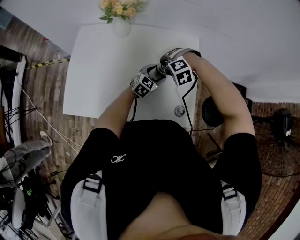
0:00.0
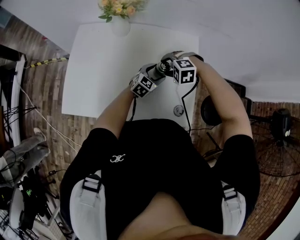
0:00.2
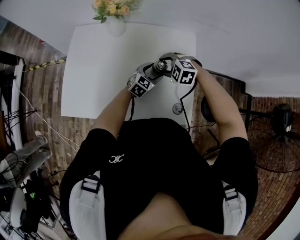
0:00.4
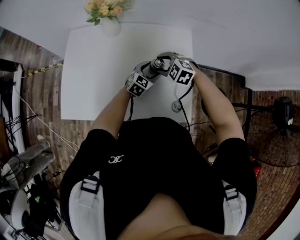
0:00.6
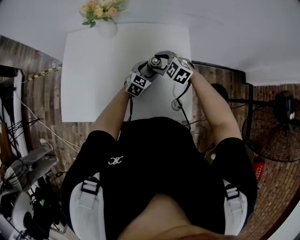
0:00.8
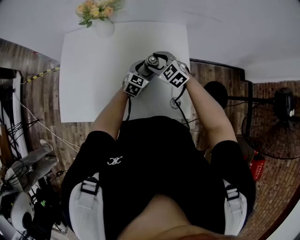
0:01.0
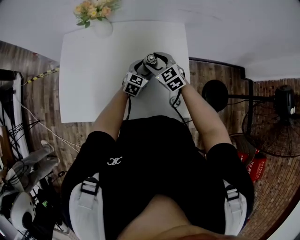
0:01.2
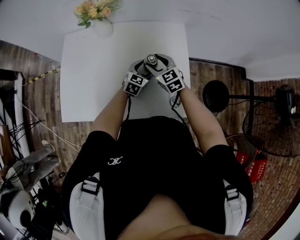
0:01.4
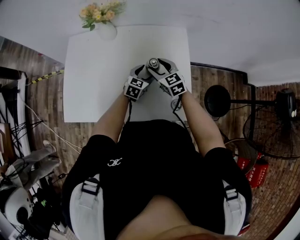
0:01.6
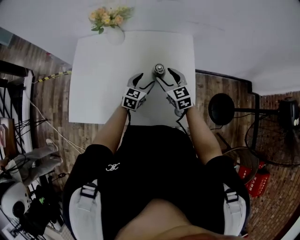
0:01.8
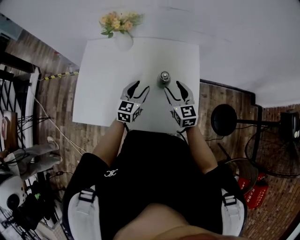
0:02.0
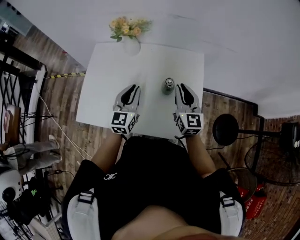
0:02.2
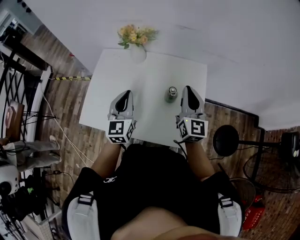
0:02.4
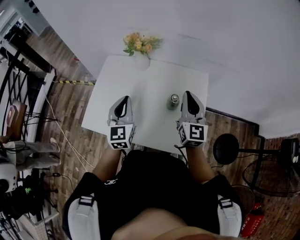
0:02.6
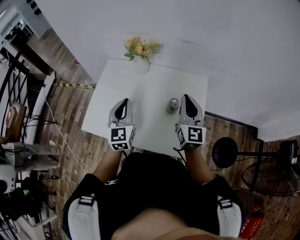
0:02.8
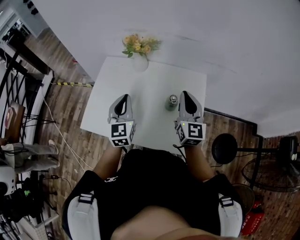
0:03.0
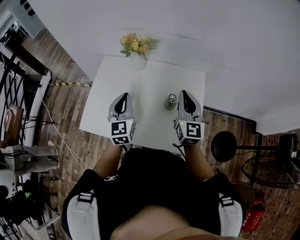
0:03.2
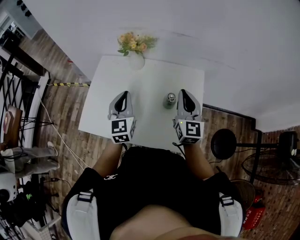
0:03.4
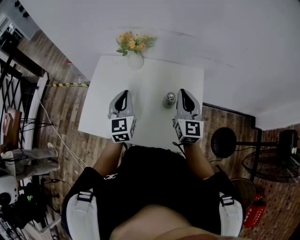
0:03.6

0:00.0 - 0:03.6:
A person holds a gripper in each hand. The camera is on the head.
0:00.0 - 0:01.8: The left gripper changes place by approximately 5 cm; the right gripper shifts by some 5 cm, and rolls clockwise, seen from behind, by roughly 80 degrees.
0:01.8 - 0:03.6: The right gripper is displaced upward by approximately 20 cm, swivels roughly 30 degrees, and closes its fingers. The left gripper travels upward and to the left by some 25 cm, changes its angle by about 40 degrees, and closes its fingers.

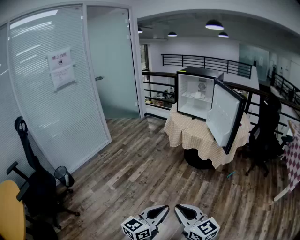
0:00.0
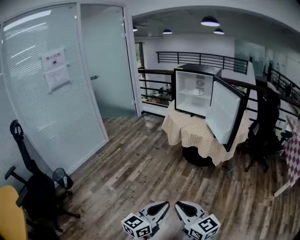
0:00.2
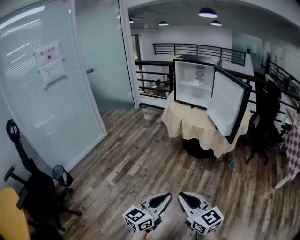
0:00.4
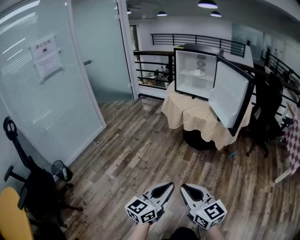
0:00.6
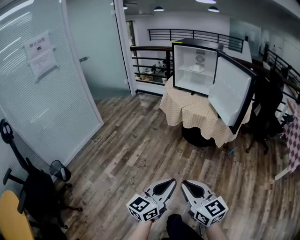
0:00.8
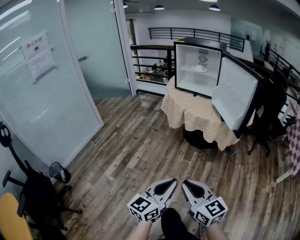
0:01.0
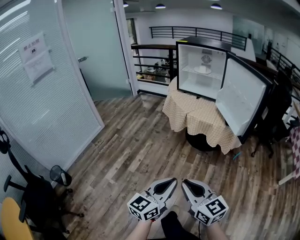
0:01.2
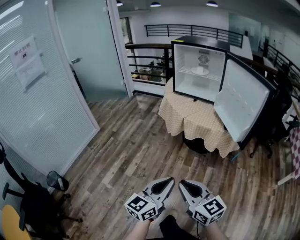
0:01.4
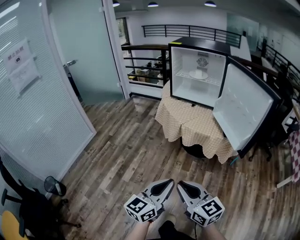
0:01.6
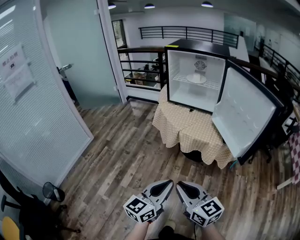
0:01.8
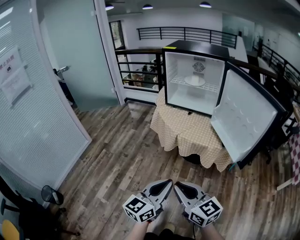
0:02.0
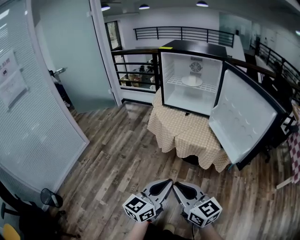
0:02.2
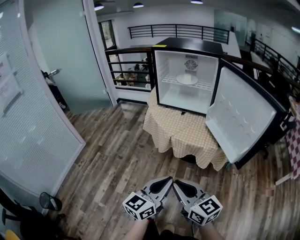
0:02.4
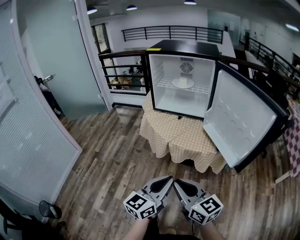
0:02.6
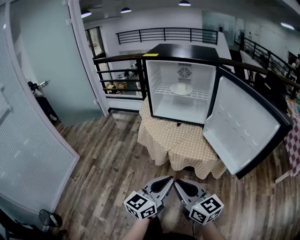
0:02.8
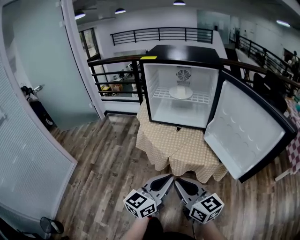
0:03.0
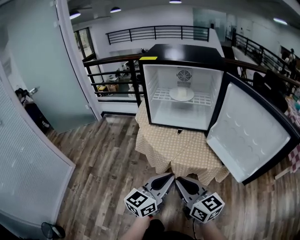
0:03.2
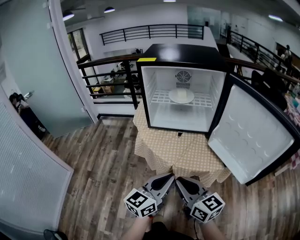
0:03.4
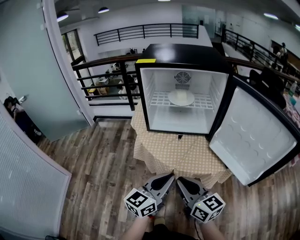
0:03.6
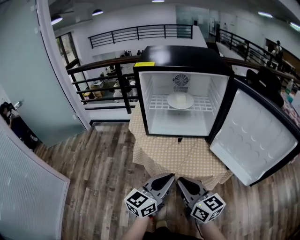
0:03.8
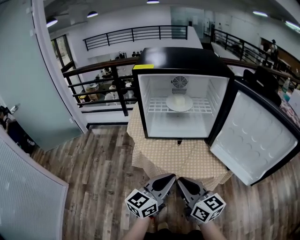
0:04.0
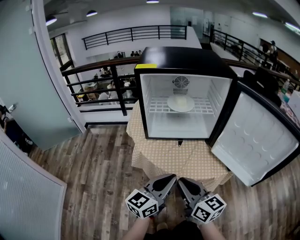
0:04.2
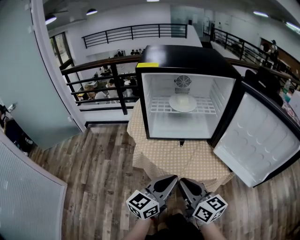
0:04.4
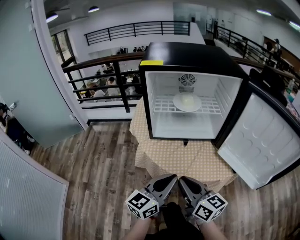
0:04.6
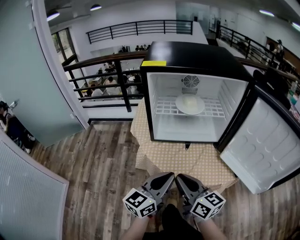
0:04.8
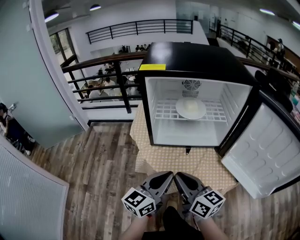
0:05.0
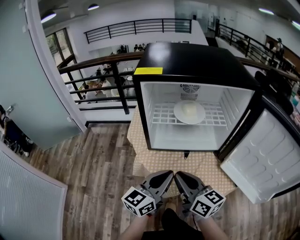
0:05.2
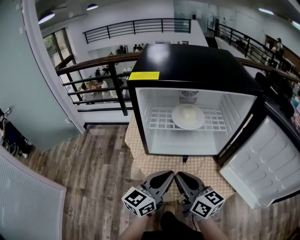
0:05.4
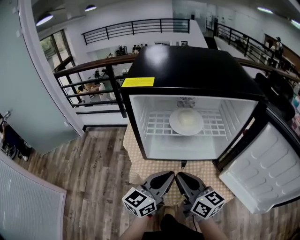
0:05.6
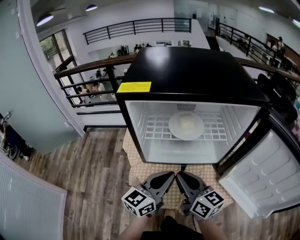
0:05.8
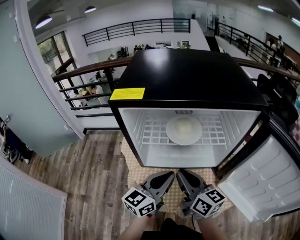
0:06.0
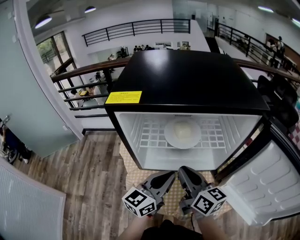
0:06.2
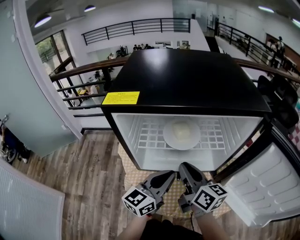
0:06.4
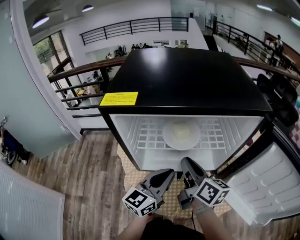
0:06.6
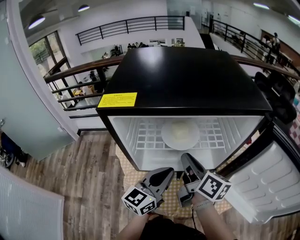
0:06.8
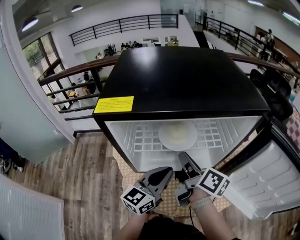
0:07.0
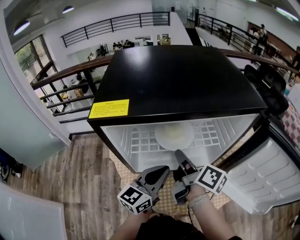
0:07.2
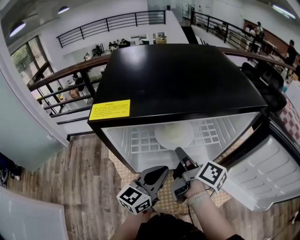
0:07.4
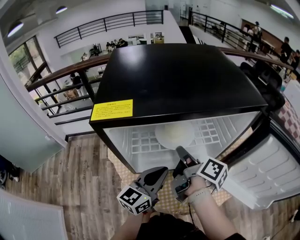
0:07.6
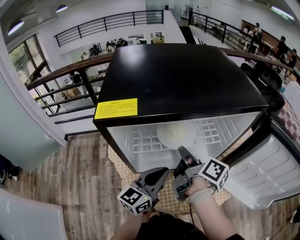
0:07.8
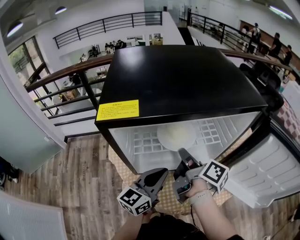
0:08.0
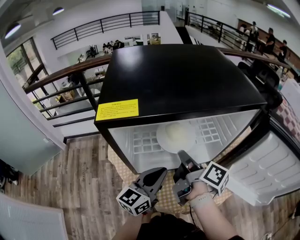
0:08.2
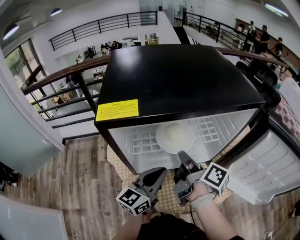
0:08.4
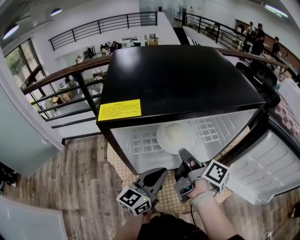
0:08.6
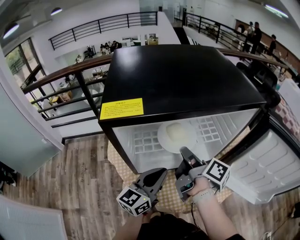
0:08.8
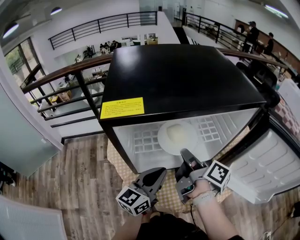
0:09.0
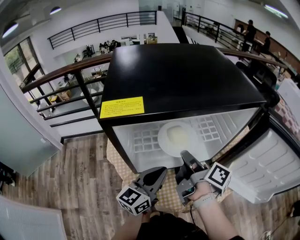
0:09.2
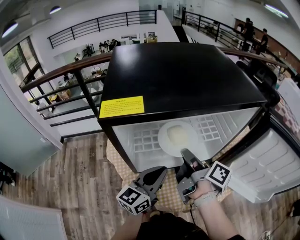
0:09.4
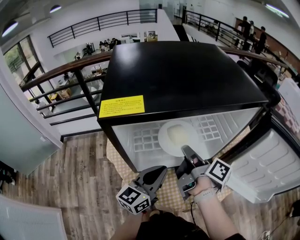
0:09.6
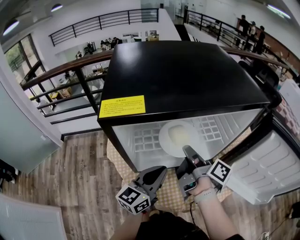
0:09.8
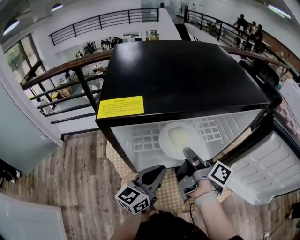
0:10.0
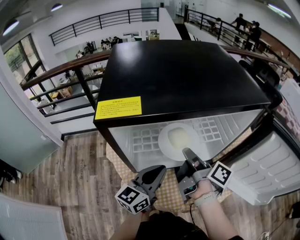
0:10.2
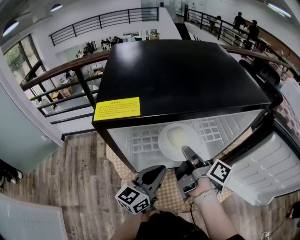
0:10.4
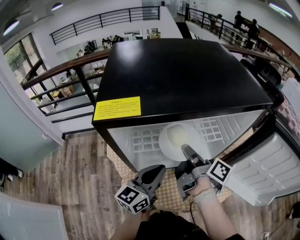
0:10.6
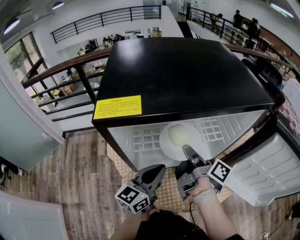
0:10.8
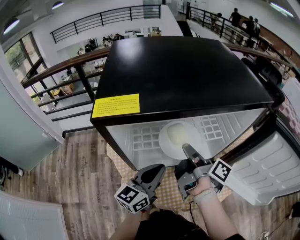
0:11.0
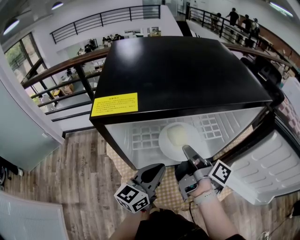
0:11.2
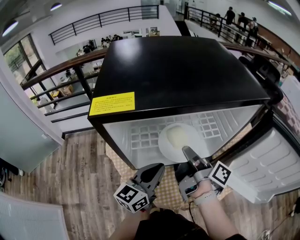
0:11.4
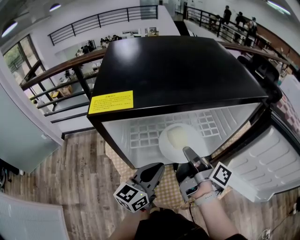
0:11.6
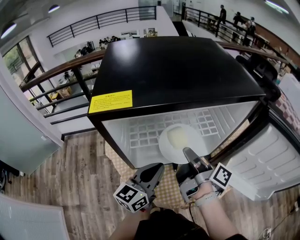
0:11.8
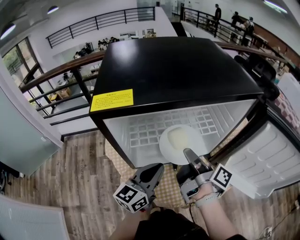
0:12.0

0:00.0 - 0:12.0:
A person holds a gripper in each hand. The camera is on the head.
0:00.0 - 0:01.6: The two grippers go about 35 cm forward.
0:01.6 - 0:03.0: Both grippers move forward, some 25 cm.
0:03.0 - 0:04.4: Both grippers move forward and to the left, approximately 15 cm.
0:04.4 - 0:06.0: Both grippers move forward, about 20 cm.
0:06.0 - 0:07.6: The right gripper goes about 10 cm forward, and rolls clockwise, seen from behind, by some 50 degrees.
0:07.6 - 0:12.0: There are only small adjustments of the grippers.

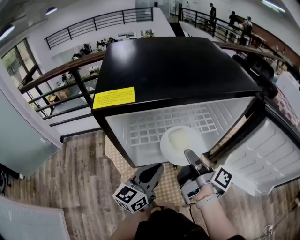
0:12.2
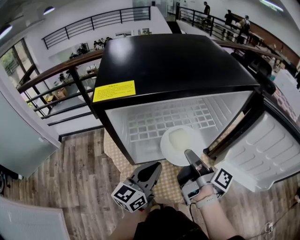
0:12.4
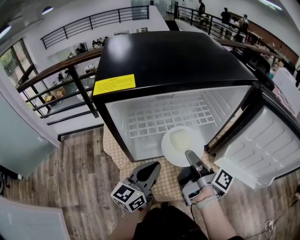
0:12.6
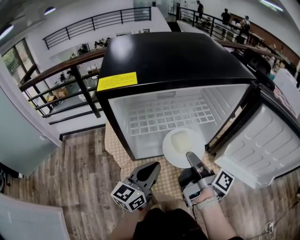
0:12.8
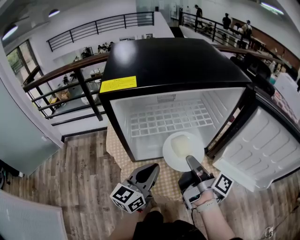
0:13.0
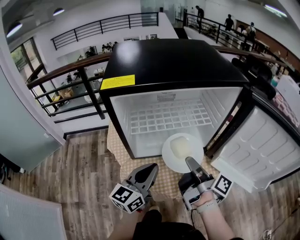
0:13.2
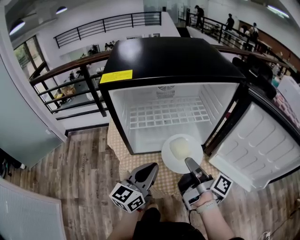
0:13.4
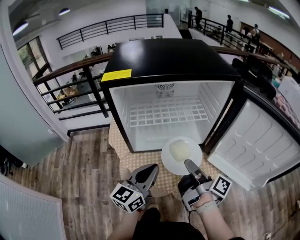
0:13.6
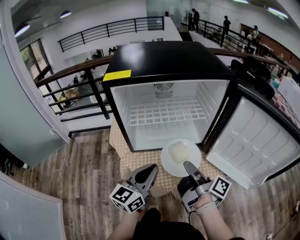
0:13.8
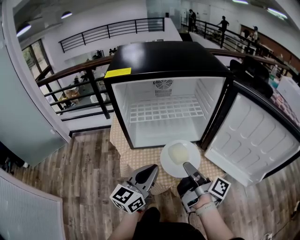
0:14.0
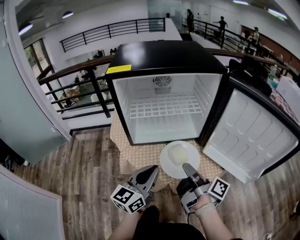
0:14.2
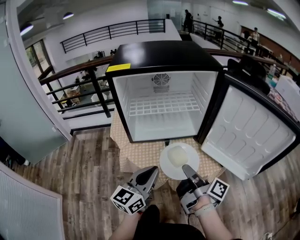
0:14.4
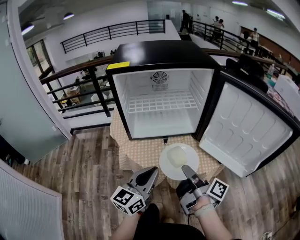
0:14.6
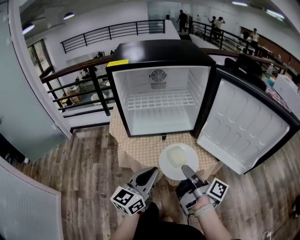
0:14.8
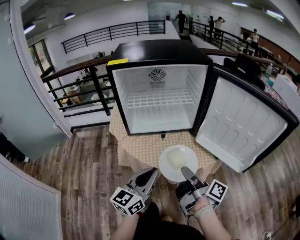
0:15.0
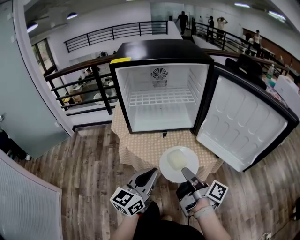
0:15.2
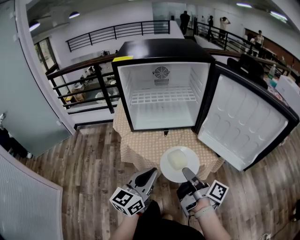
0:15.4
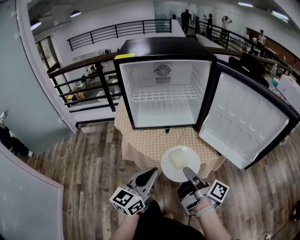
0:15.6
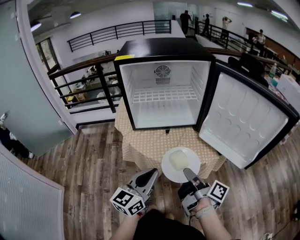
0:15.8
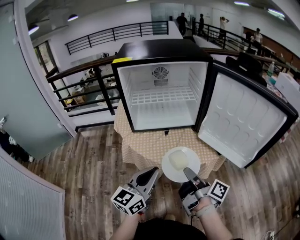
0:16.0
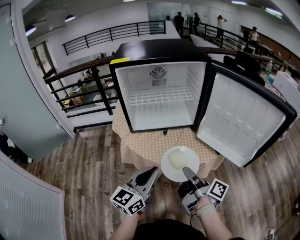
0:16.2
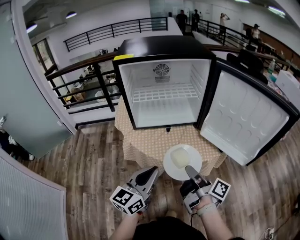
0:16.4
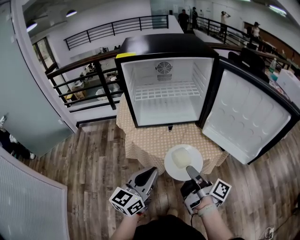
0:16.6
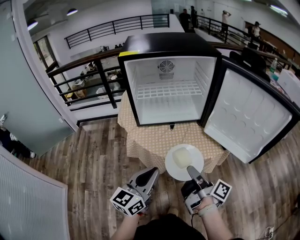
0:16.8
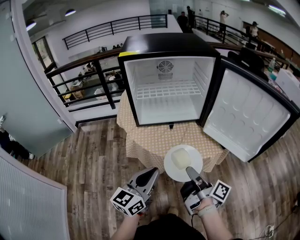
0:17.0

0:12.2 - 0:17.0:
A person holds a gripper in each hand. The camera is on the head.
0:12.2 - 0:13.8: The right gripper is displaced backward and to the right by some 15 cm. The left gripper moves backward, approximately 10 cm.
0:13.8 - 0:15.4: Both grippers travel together backward, some 15 cm.
0:15.4 - 0:17.0: There are only small adjustments of the grippers.

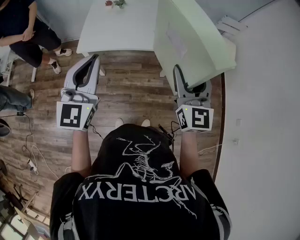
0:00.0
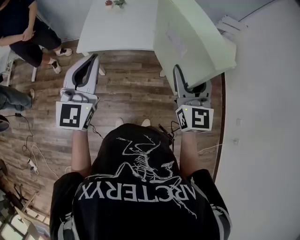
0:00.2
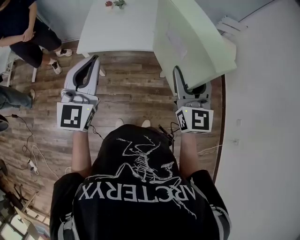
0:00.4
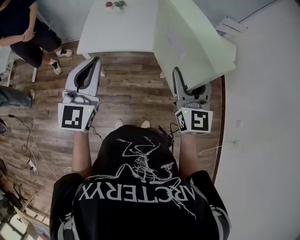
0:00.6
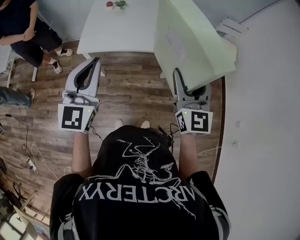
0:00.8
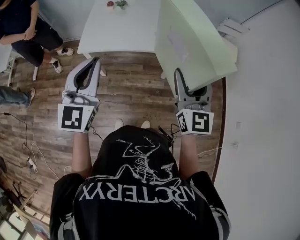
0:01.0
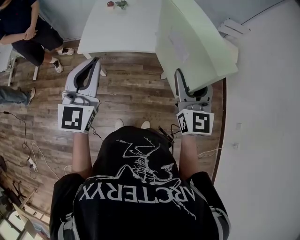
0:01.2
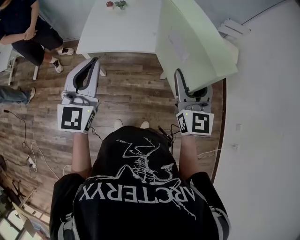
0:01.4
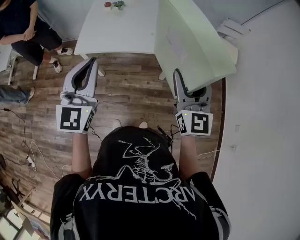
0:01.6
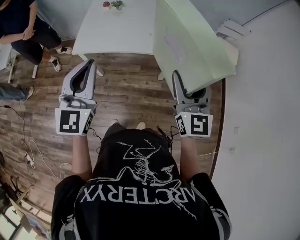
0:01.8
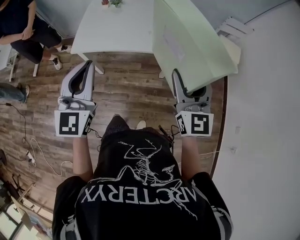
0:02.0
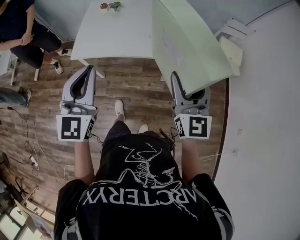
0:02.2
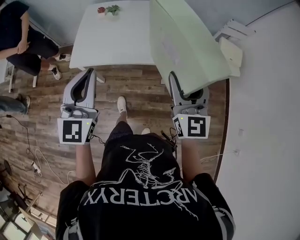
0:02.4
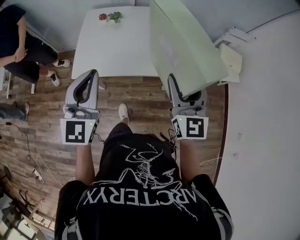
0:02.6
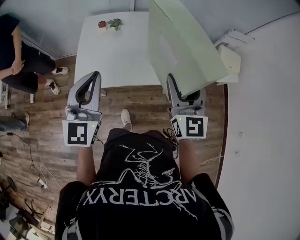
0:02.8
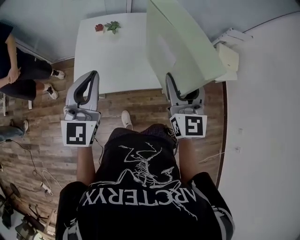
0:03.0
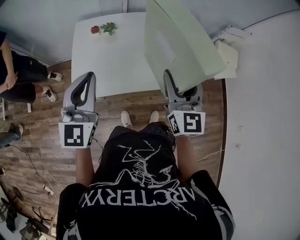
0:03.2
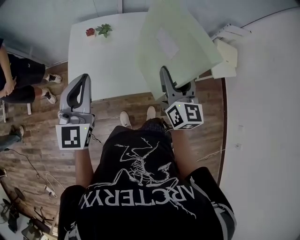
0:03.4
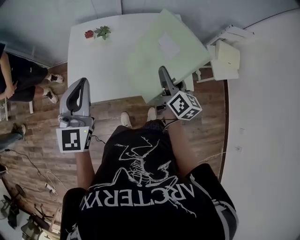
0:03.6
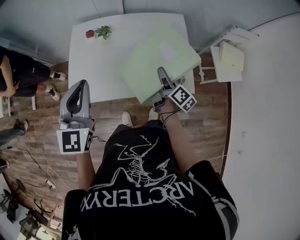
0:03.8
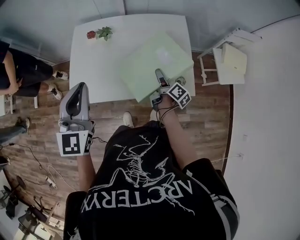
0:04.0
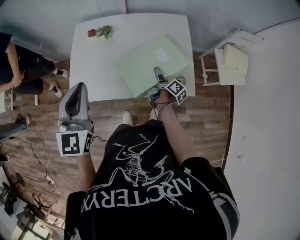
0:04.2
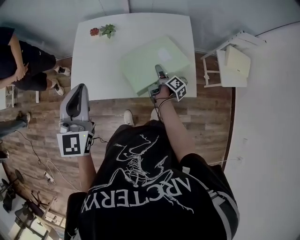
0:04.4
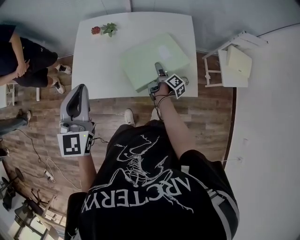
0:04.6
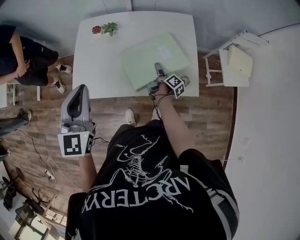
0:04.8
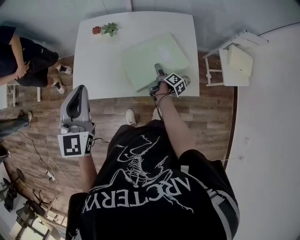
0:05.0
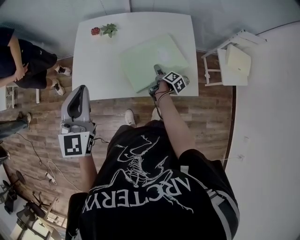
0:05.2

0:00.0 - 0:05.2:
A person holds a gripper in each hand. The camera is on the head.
0:00.0 - 0:01.8: Both grippers move to the right, roughly 5 cm.
0:01.8 - 0:03.4: Both grippers travel together forward, approximately 30 cm. The right gripper swivels approximately 20 degrees.
0:03.4 - 0:05.2: The right gripper shifts some 35 cm downward, and rotates around the line of its fingers by approximately 60 degrees, clockwise from behind.
